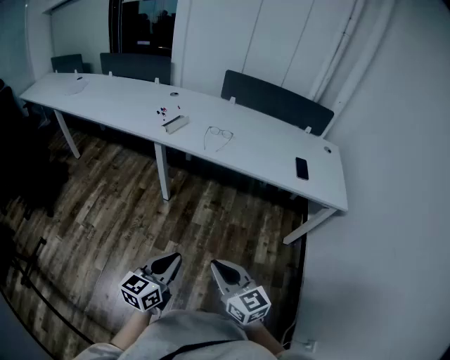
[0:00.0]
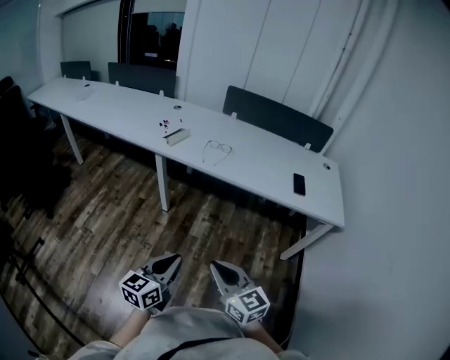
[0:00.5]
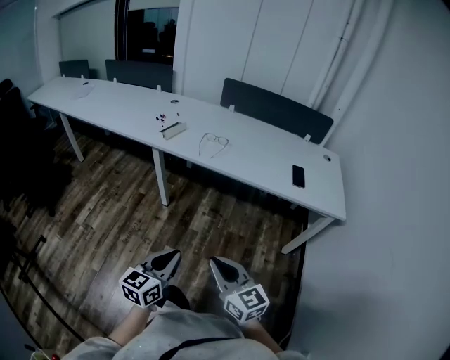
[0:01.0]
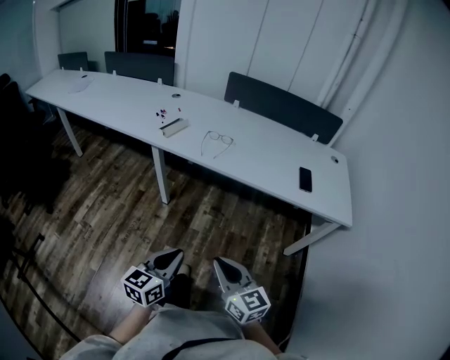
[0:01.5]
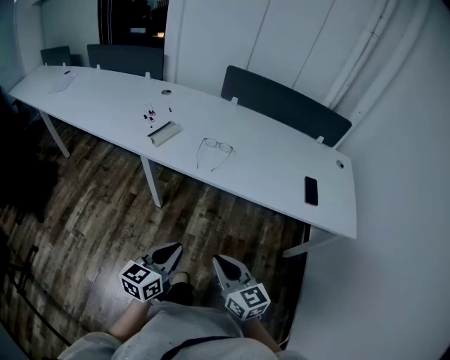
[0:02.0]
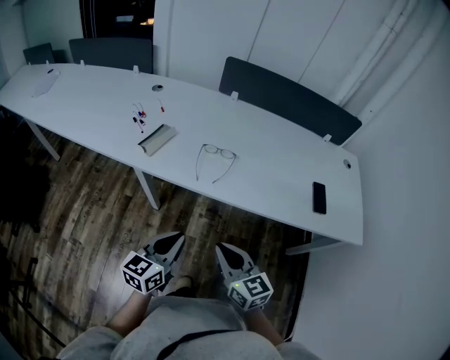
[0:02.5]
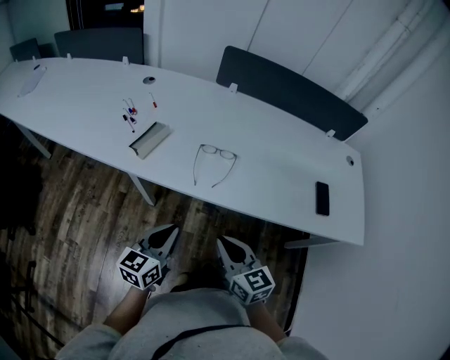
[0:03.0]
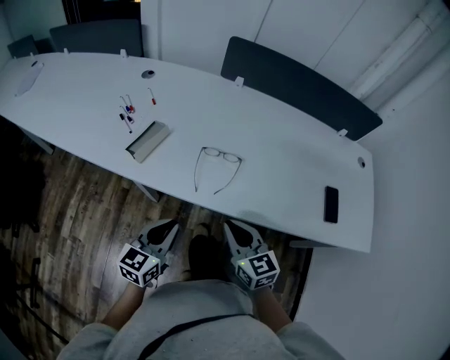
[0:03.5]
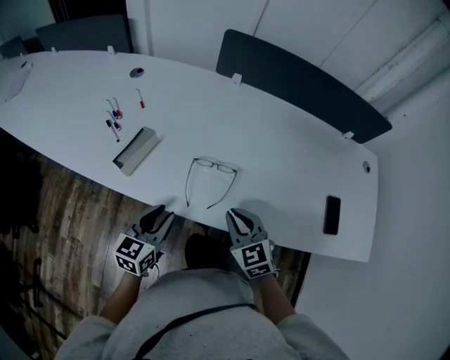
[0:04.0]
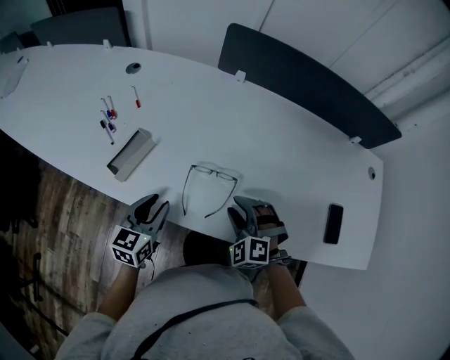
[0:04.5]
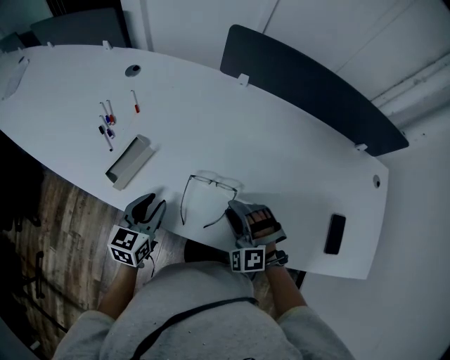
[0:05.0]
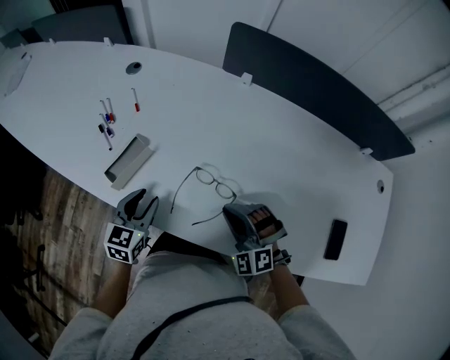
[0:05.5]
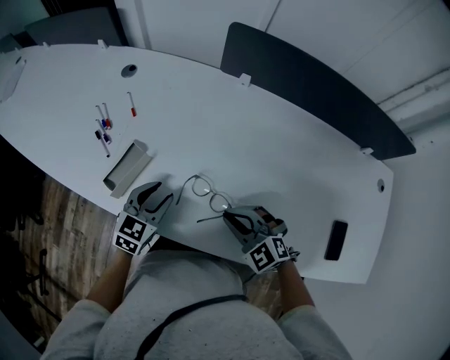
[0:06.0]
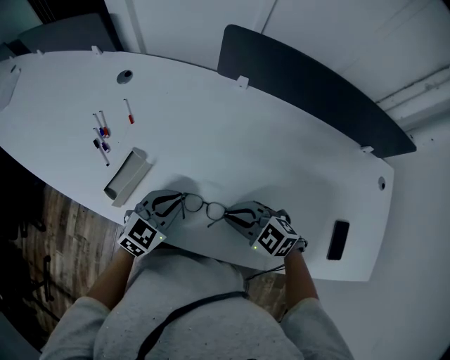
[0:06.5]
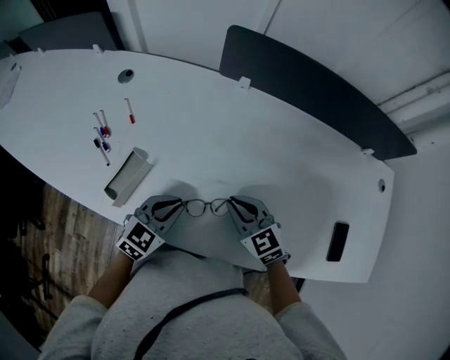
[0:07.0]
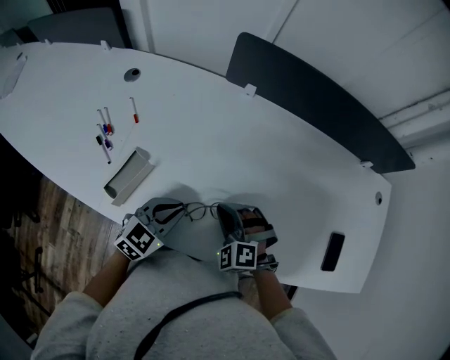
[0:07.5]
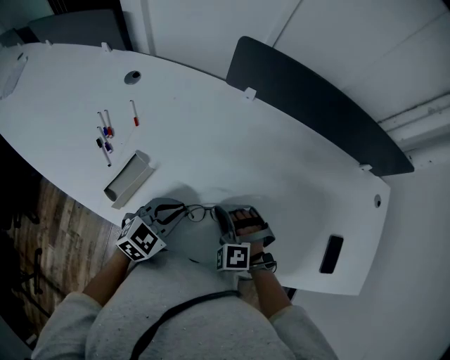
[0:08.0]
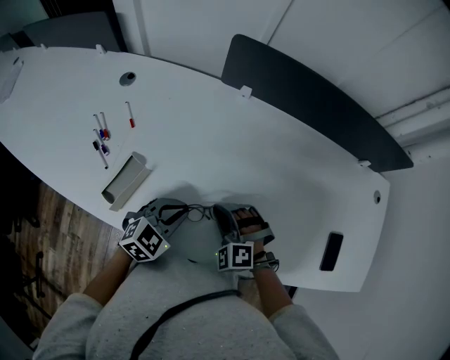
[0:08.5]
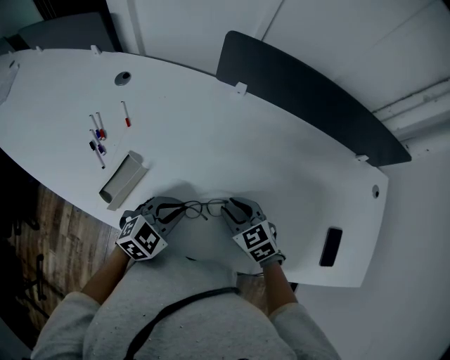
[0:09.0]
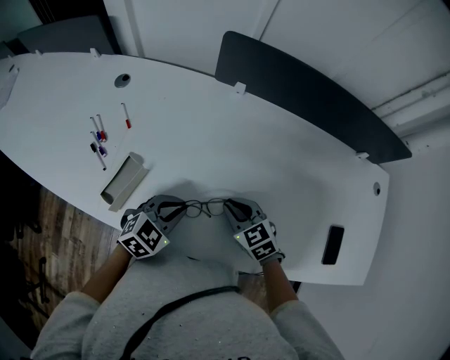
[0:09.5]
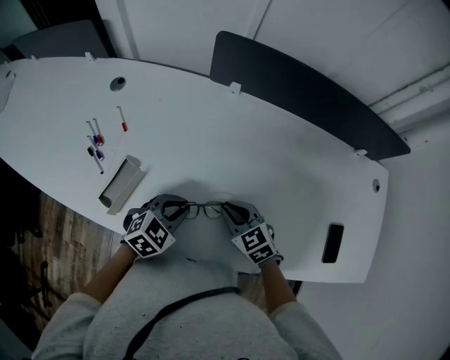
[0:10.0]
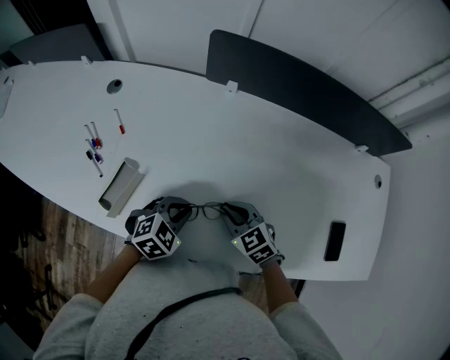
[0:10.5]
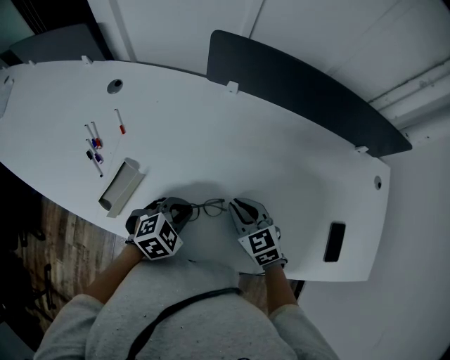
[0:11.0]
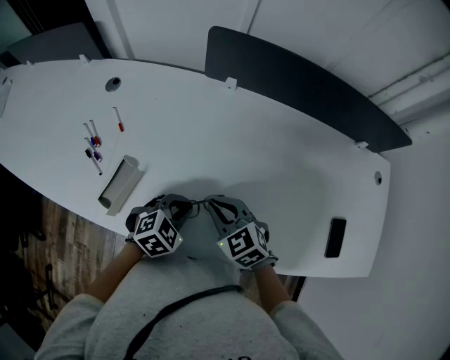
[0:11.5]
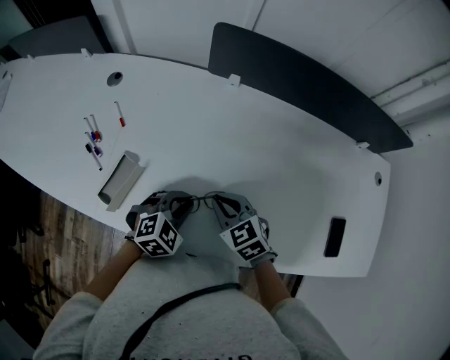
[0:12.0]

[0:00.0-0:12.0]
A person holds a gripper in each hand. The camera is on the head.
0:00.0 to 0:02.0: The two grippers go about 25 cm forward.
0:02.0 to 0:04.0: The pair of grippers is taken forward, roughly 40 cm. The right gripper rotates approximately 30 degrees; the left gripper opens its fingers.
0:04.0 to 0:06.0: The right gripper moves forward, some 10 cm, rotates approximately 40 degrees, and opens and closes again, while the left gripper is displaced forward by approximately 15 cm, and swivels approximately 20 degrees.
0:06.0 to 0:08.0: The right gripper moves approximately 10 cm, and swivels about 40 degrees. Meanwhile the left gripper swivels about 20 degrees, and closes up.
0:08.0 to 0:10.0: The right gripper rolls clockwise, seen from behind, by approximately 60 degrees.

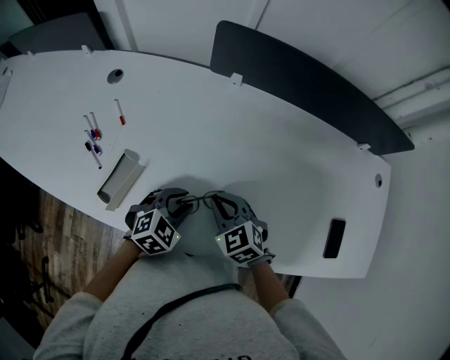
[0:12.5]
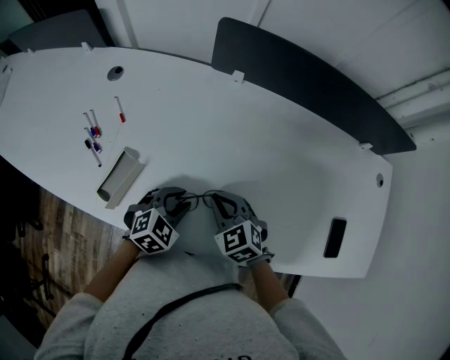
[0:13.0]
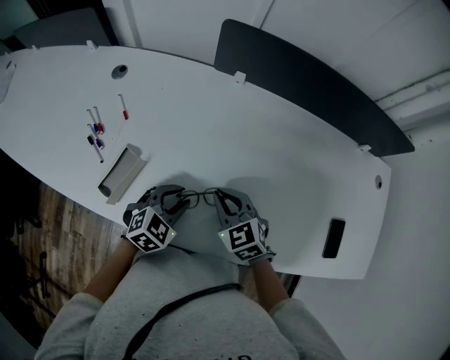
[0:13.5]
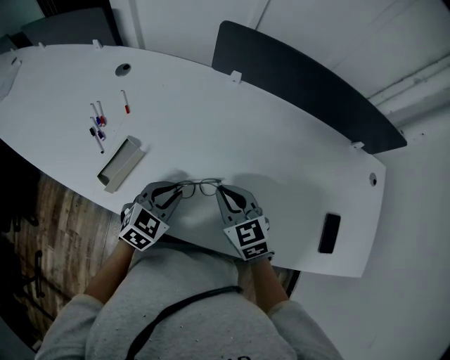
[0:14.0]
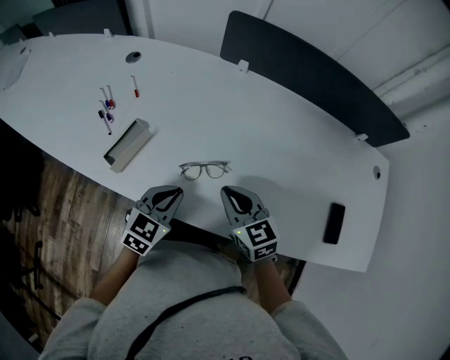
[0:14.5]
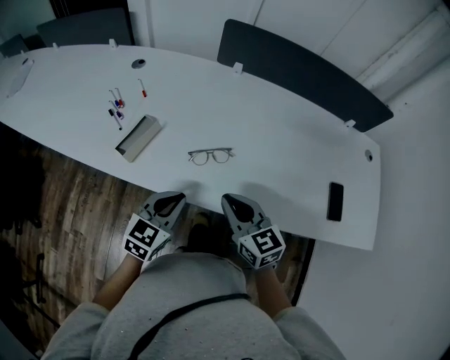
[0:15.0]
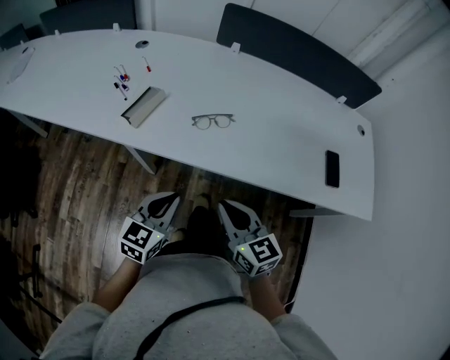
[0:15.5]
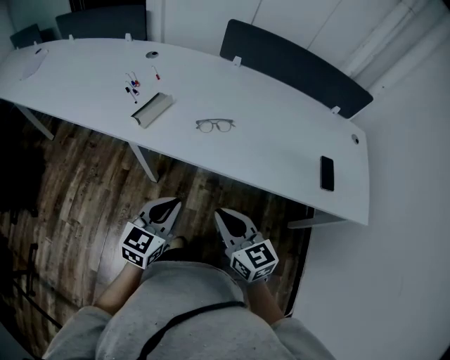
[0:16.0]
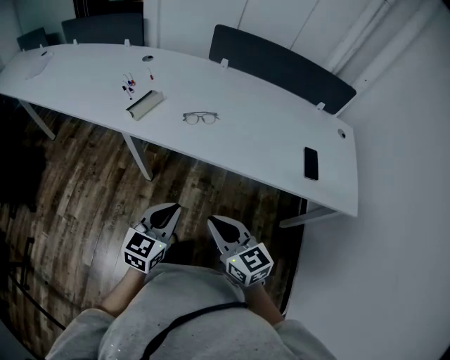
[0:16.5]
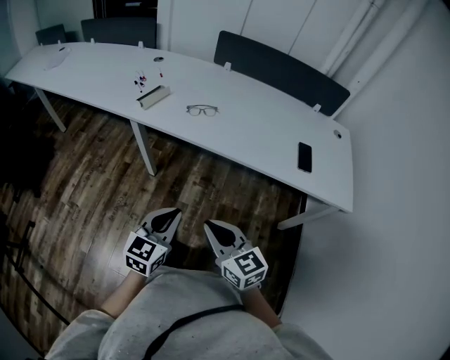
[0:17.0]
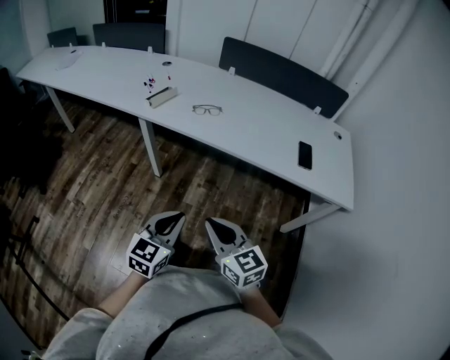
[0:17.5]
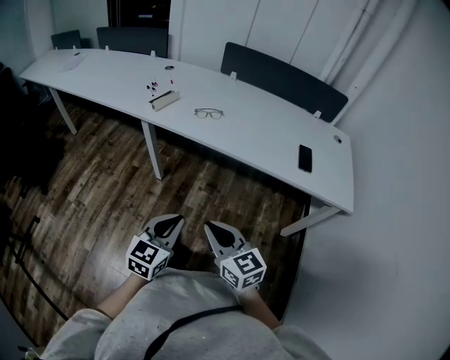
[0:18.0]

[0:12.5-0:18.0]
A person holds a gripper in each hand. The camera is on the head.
0:12.5 to 0:14.5: Both grippers travel together backward, approximately 10 cm. The right gripper rotates roughly 20 degrees. The left gripper rotates about 30 degrees, and closes up.
0:14.5 to 0:16.0: Both grippers travel together backward, roughly 30 cm.
0:16.0 to 0:18.0: The two grippers go some 30 cm backward.

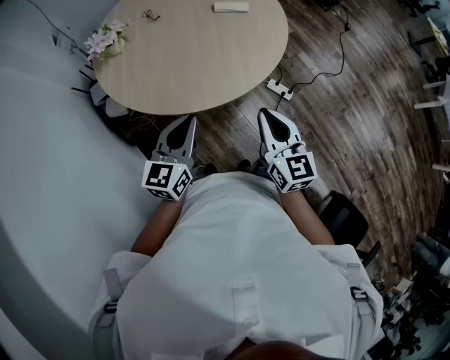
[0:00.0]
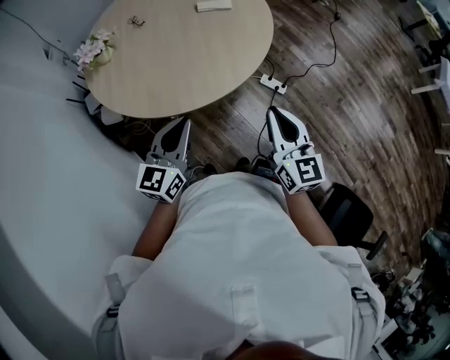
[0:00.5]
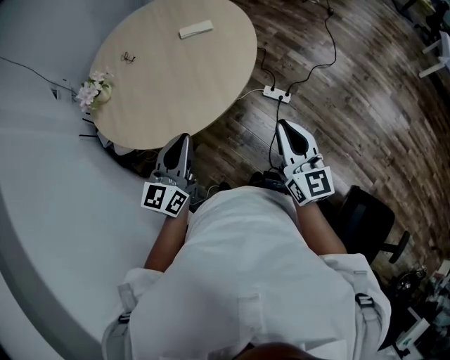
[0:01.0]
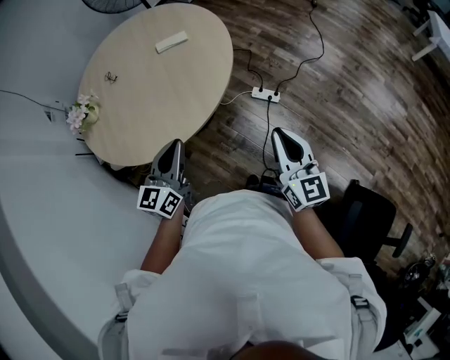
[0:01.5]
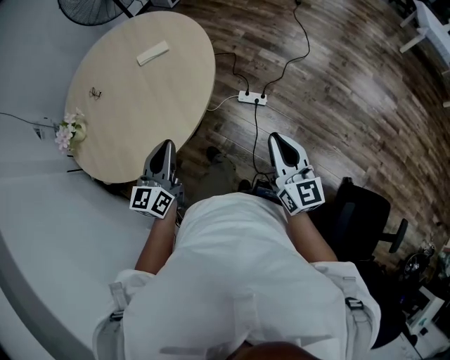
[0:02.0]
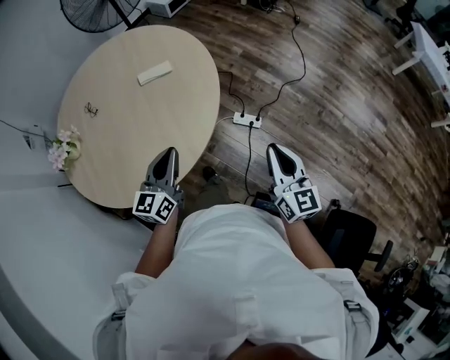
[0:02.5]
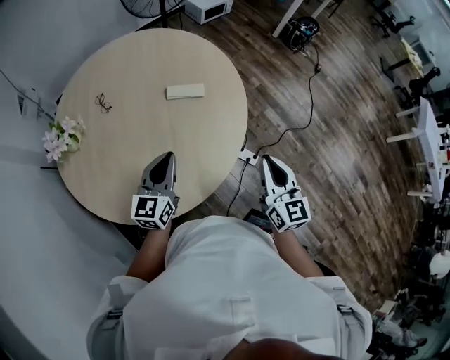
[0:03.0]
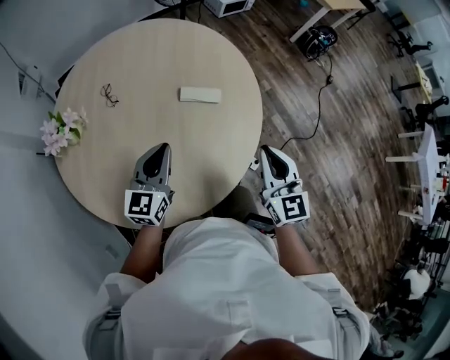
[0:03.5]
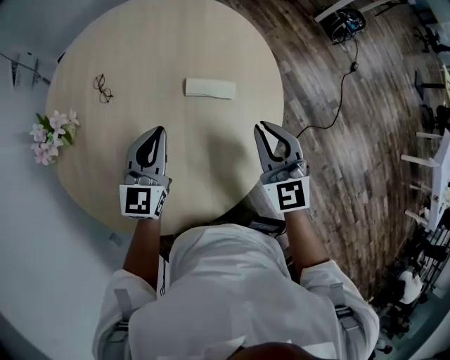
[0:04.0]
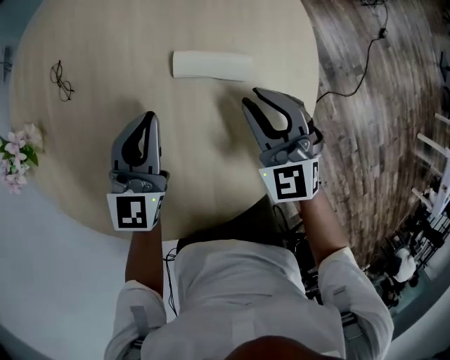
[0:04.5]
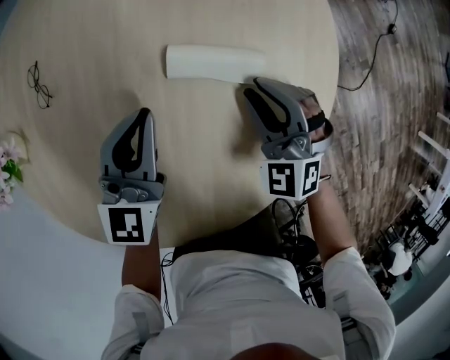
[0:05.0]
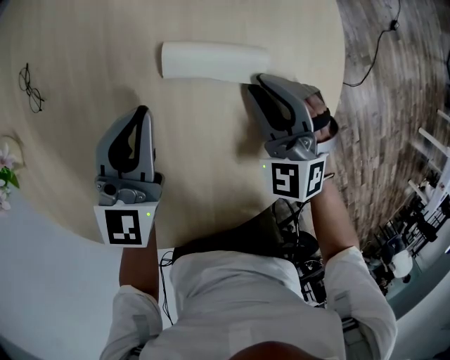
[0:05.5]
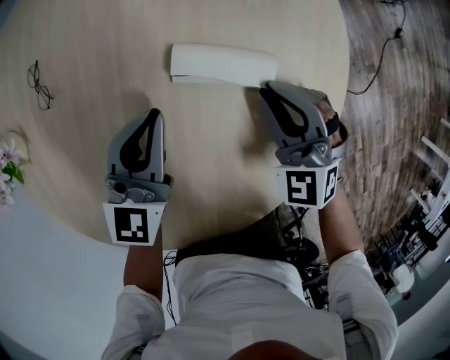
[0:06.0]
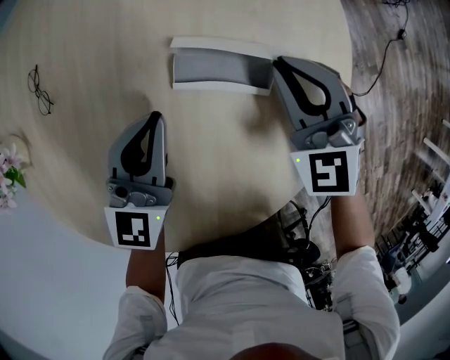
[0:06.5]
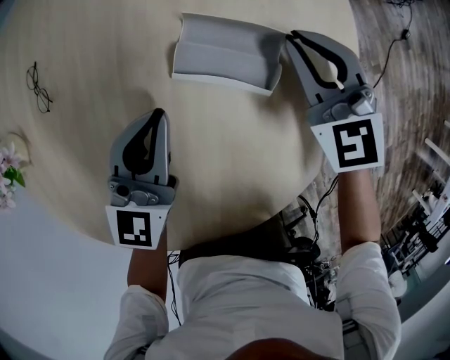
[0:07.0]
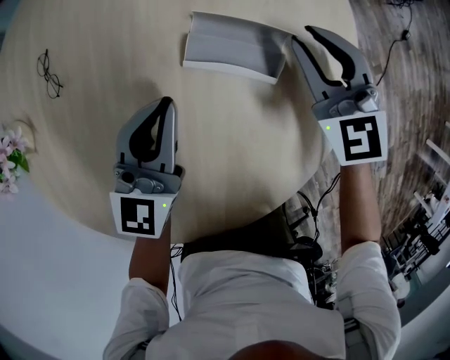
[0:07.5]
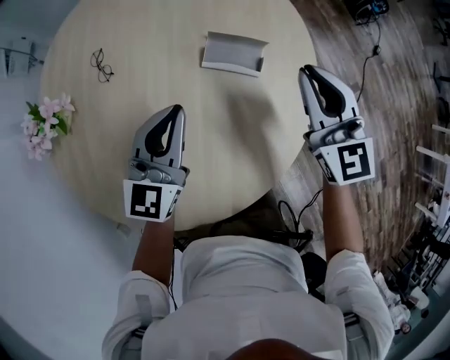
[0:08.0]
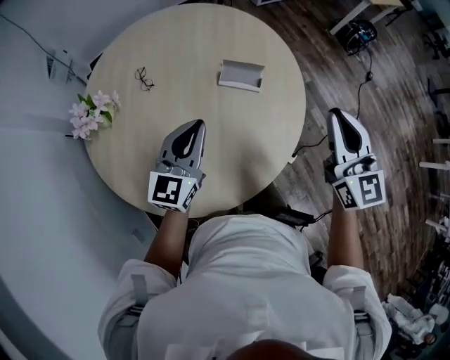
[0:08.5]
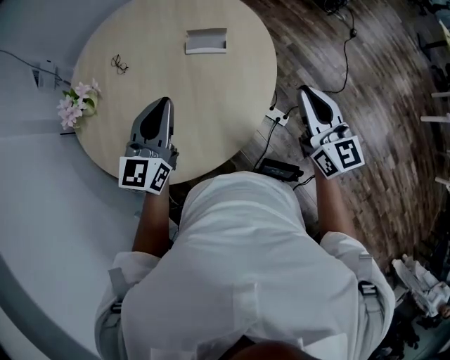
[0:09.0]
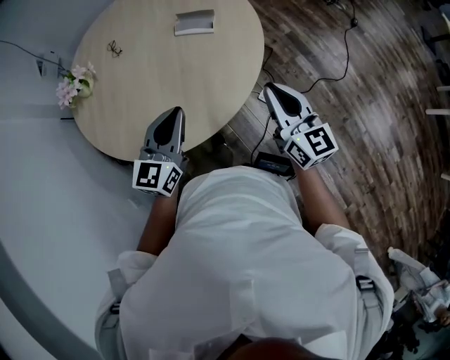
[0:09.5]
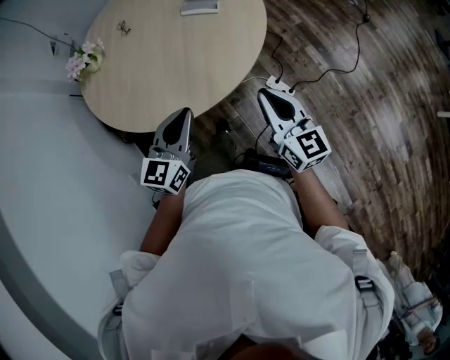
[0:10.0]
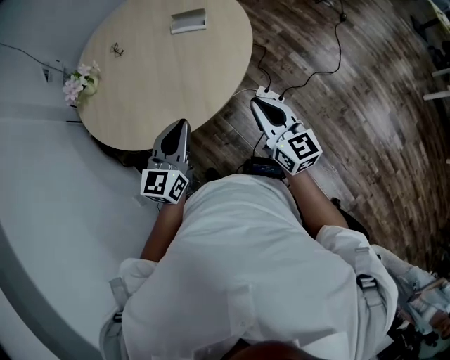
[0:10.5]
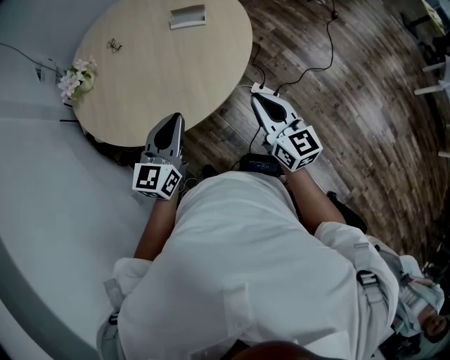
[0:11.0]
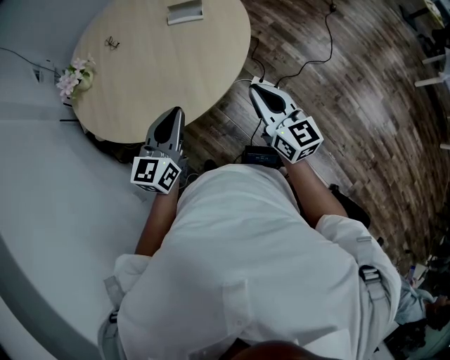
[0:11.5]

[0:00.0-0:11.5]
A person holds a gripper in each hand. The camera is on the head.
0:00.0 to 0:02.0: The right gripper moves to the right, some 30 cm, and turns by approximately 20 degrees. The left gripper heads to the right and forward, covering about 20 cm.
0:02.0 to 0:04.0: The two grippers travel together, forward and to the left, some 50 cm. The right gripper turns by approximately 40 degrees, while the left gripper changes its angle by roughly 30 degrees.
0:04.0 to 0:06.0: Both grippers move downward and forward, about 20 cm. The right gripper rotates approximately 30 degrees.
0:06.0 to 0:07.5: The right gripper goes roughly 10 cm forward.
0:07.5 to 0:09.5: The two grippers go roughly 50 cm backward and upward. The right gripper turns by some 40 degrees.
0:09.5 to 0:11.5: The right gripper travels backward and to the left by approximately 15 cm, while the left gripper goes about 10 cm backward.
